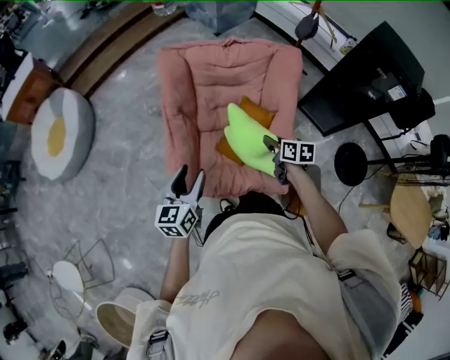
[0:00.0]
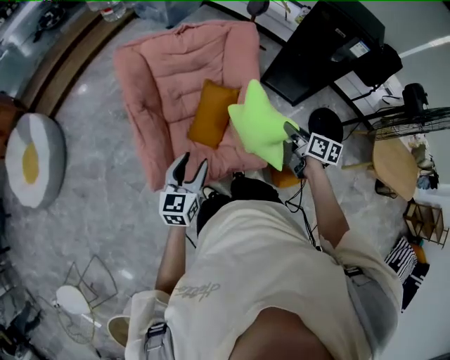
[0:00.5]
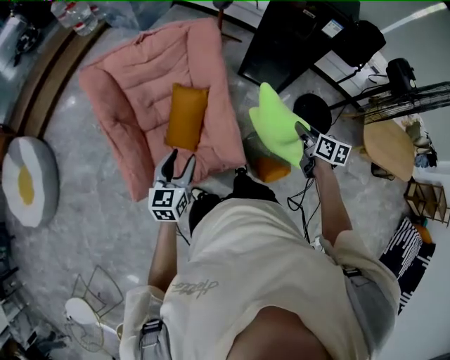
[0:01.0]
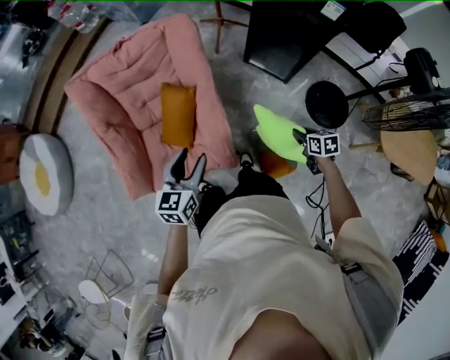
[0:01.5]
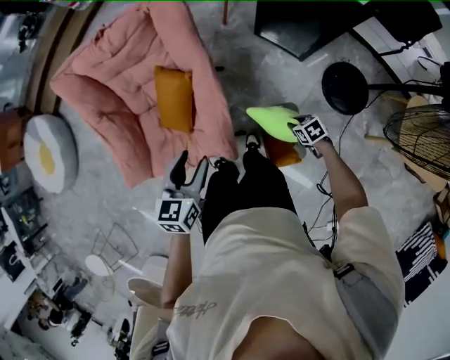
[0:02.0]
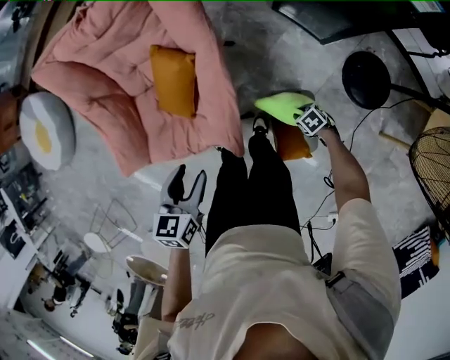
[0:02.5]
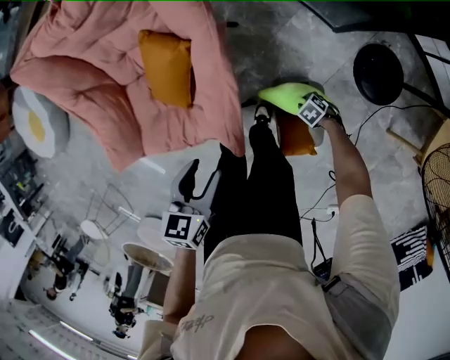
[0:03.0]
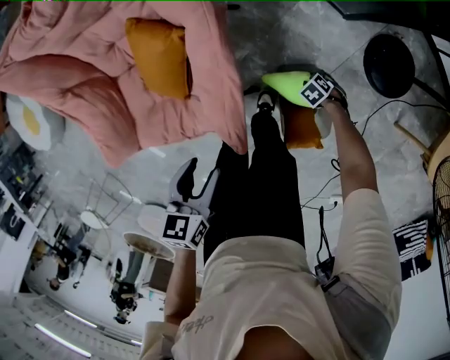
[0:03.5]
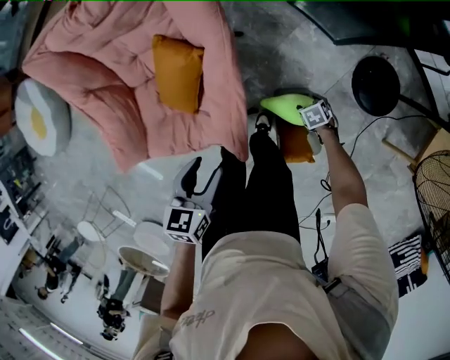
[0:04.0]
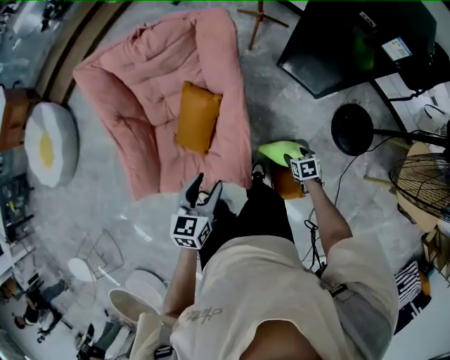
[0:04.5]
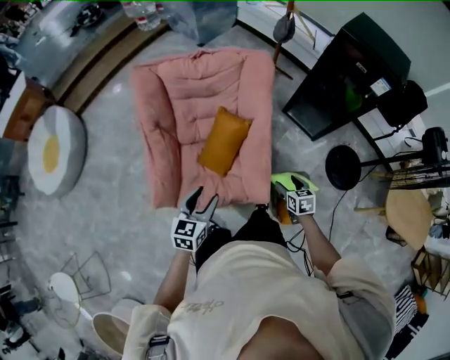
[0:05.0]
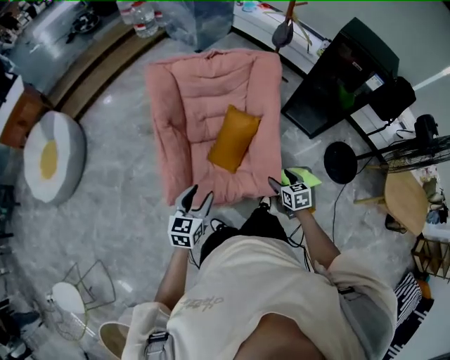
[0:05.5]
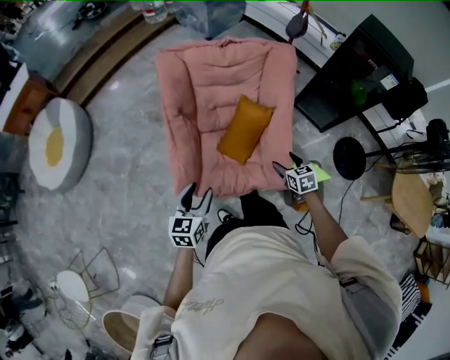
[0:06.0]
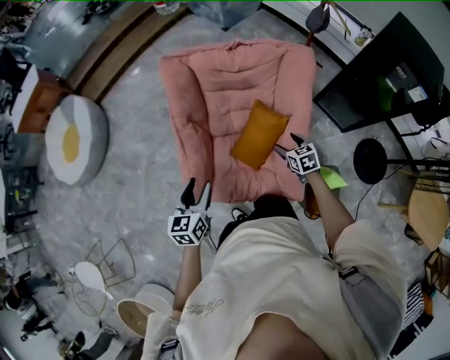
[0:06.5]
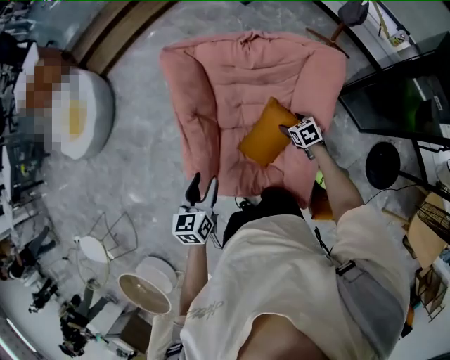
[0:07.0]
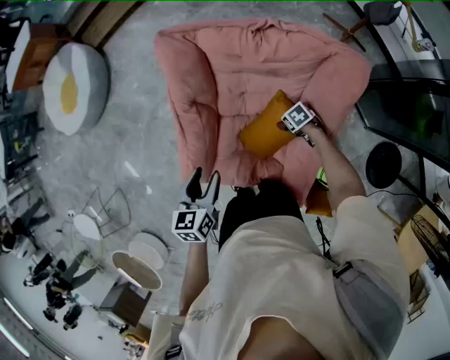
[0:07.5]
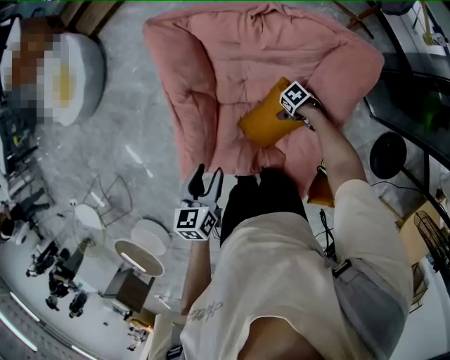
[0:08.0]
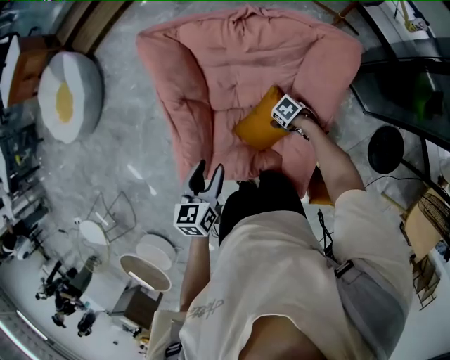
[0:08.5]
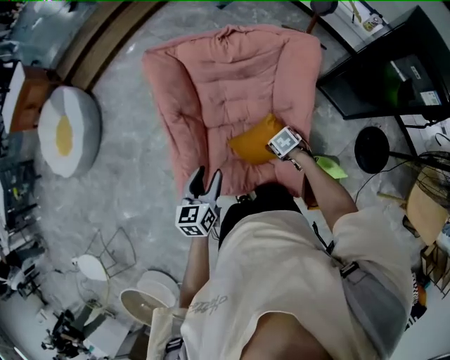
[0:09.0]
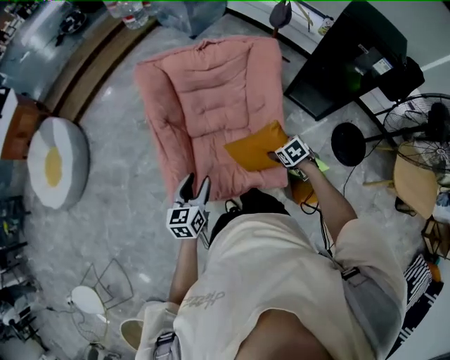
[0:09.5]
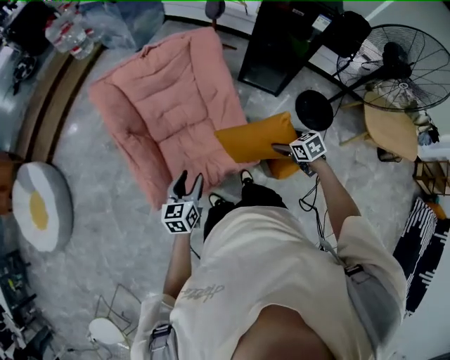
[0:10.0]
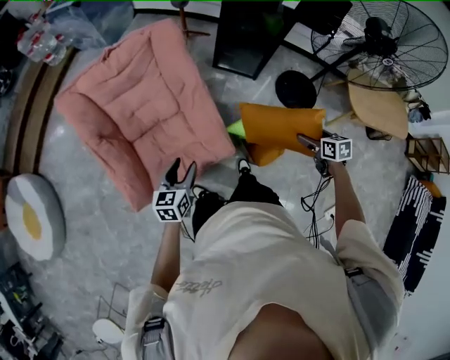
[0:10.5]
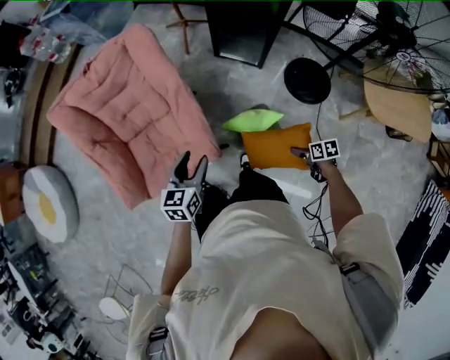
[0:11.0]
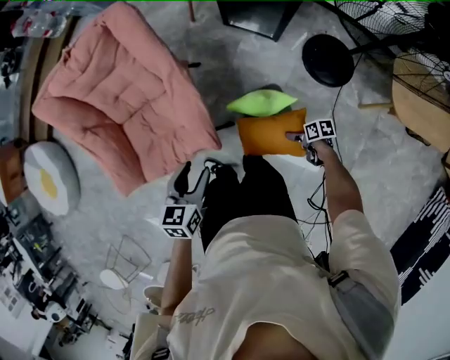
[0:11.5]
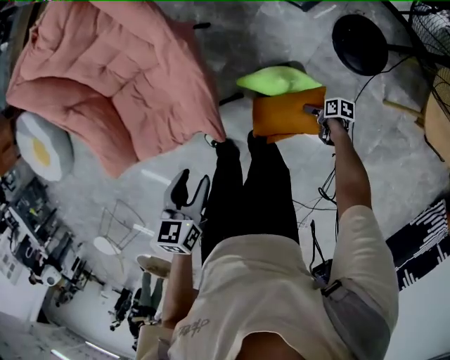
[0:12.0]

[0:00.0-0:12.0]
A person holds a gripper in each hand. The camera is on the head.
0:00.0 to 0:02.0: The right gripper changes place by about 50 cm, and changes its angle by some 30 degrees, while the left gripper ends up some 35 cm from where it was, and swivels about 20 degrees.
0:02.0 to 0:04.0: The left gripper travels downward by roughly 10 cm, while the right gripper is displaced downward by some 15 cm, and opens.
0:04.0 to 0:06.0: The right gripper heads upward, covering roughly 35 cm, and tilts its fingers some 30 degrees upward, while the left gripper shifts by some 35 cm, and changes its angle by some 20 degrees.
0:06.0 to 0:08.0: The left gripper ends up roughly 15 cm from where it was, and changes its angle by roughly 30 degrees; the right gripper changes place by approximately 35 cm, and turns by about 60 degrees.
0:08.0 to 0:10.0: The left gripper shifts by roughly 15 cm, and changes its angle by approximately 40 degrees. Meanwhile the right gripper ends up about 50 cm from where it was, and swivels about 60 degrees.
0:10.0 to 0:12.0: The right gripper travels downward by approximately 40 cm, and rolls clockwise, seen from behind, by some 50 degrees. The left gripper changes place by some 25 cm, and swivels about 30 degrees.

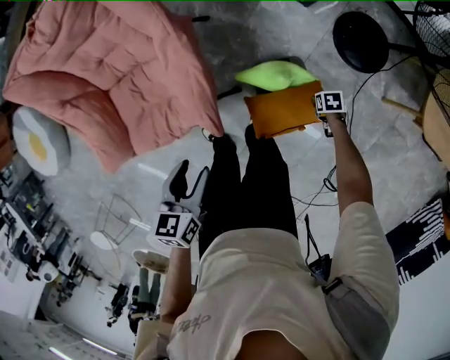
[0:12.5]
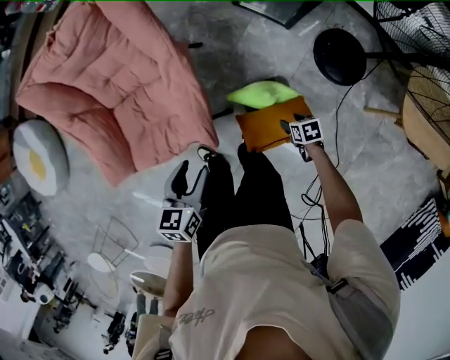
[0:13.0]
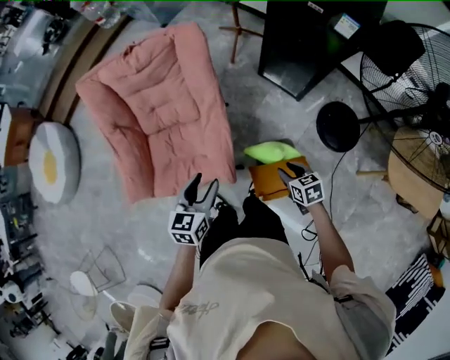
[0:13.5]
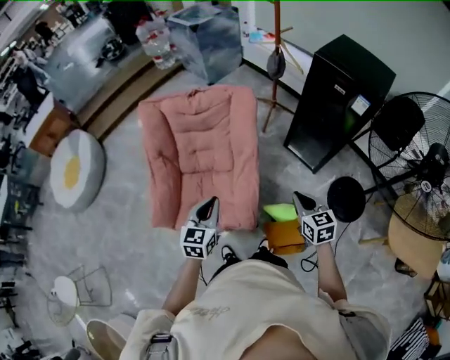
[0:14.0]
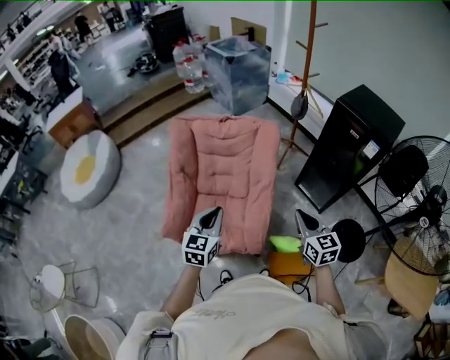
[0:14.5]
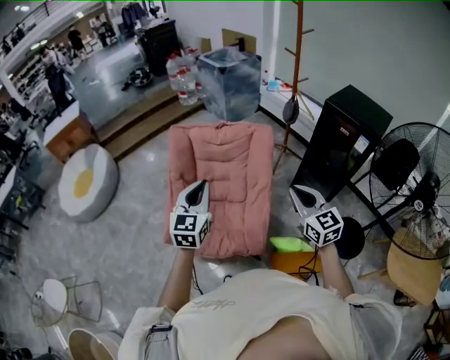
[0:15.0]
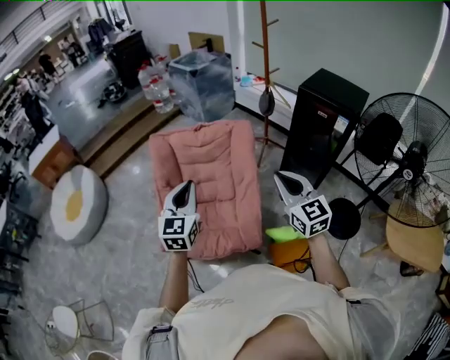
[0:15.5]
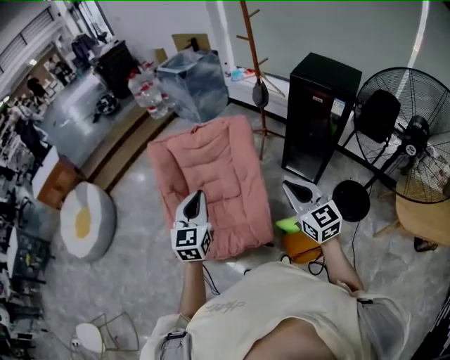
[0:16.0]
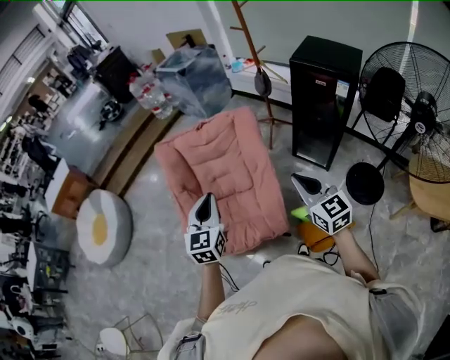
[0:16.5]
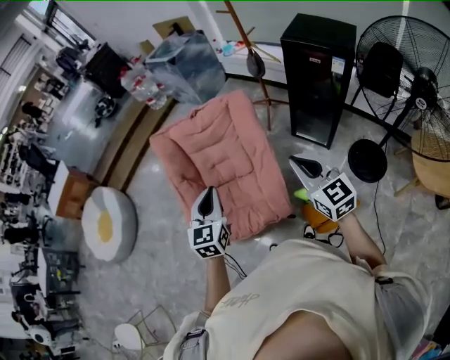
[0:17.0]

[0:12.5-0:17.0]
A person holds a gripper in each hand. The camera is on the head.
0:12.5 to 0:14.5: The left gripper moves upward, some 20 cm, angles its fingers upward, by roughly 30 degrees, and closes. The right gripper travels upward by some 60 cm, tilts its fingers approximately 70 degrees upward, and closes up.
0:14.5 to 0:17.0: The right gripper is displaced upward and to the left by roughly 10 cm; the left gripper goes some 5 cm upward.

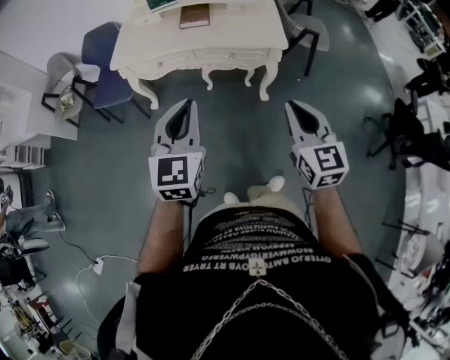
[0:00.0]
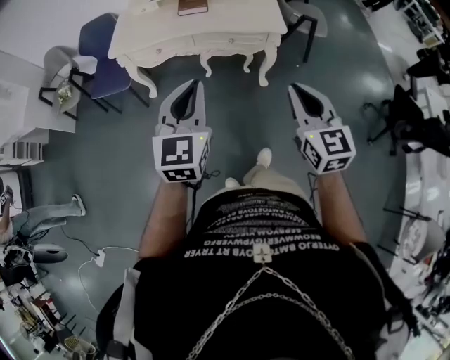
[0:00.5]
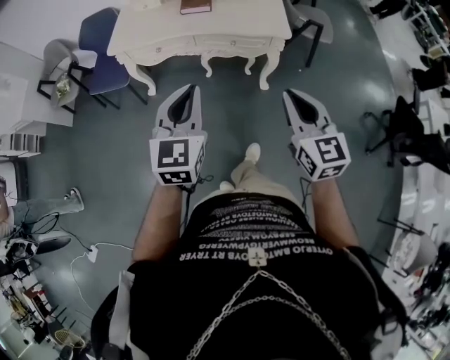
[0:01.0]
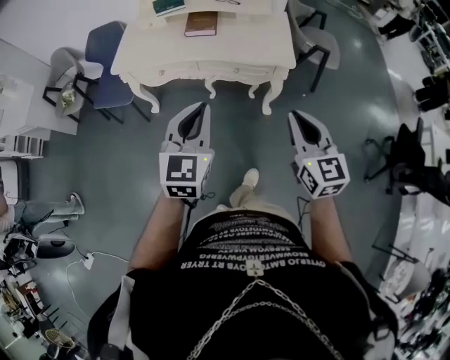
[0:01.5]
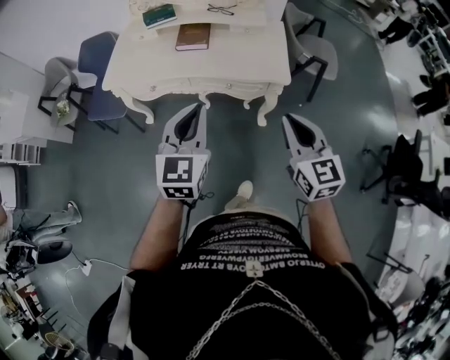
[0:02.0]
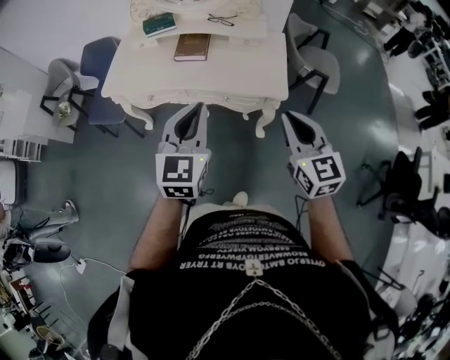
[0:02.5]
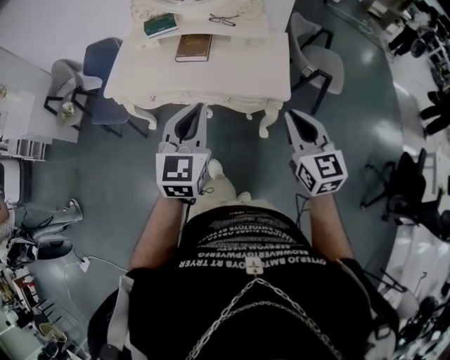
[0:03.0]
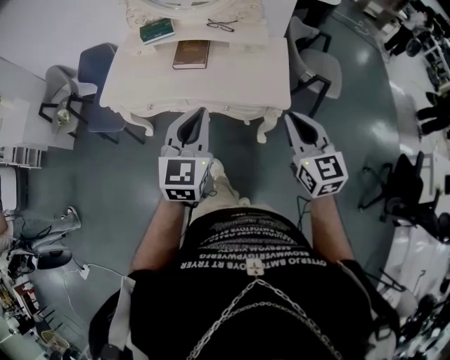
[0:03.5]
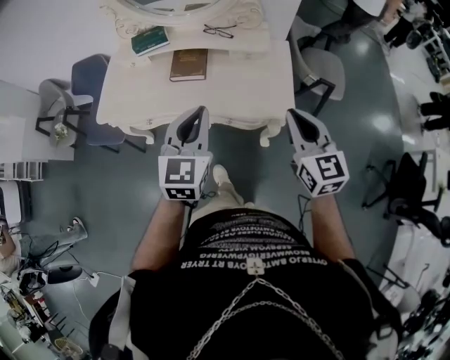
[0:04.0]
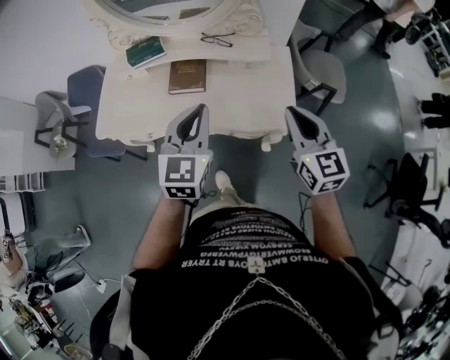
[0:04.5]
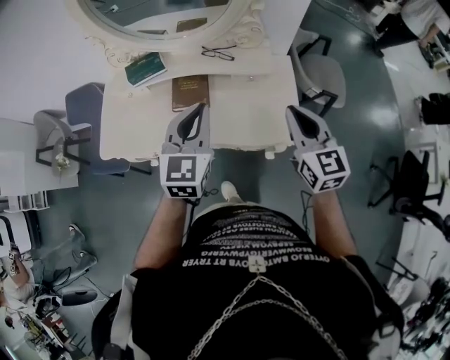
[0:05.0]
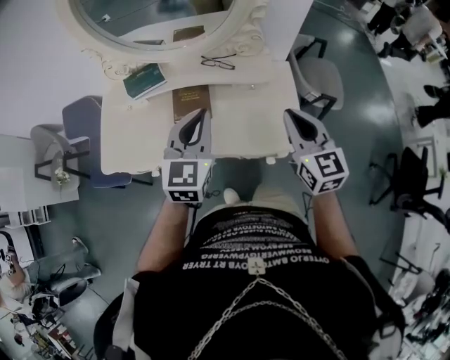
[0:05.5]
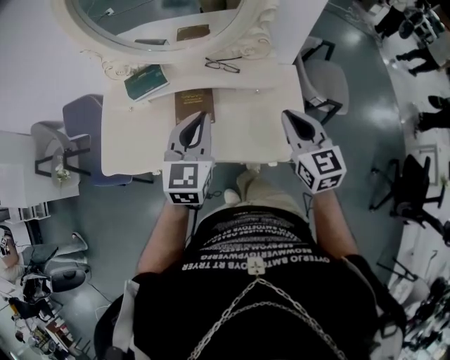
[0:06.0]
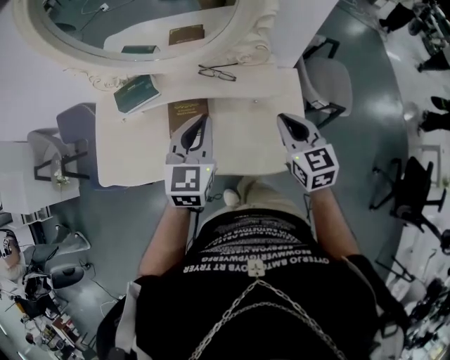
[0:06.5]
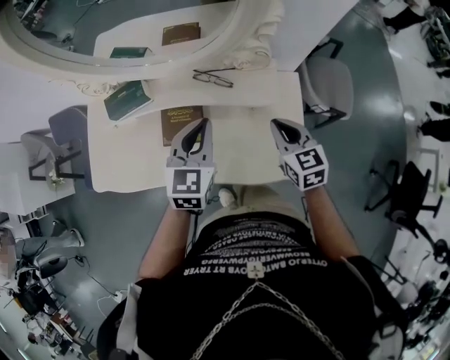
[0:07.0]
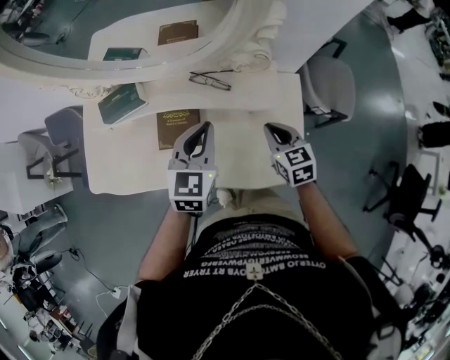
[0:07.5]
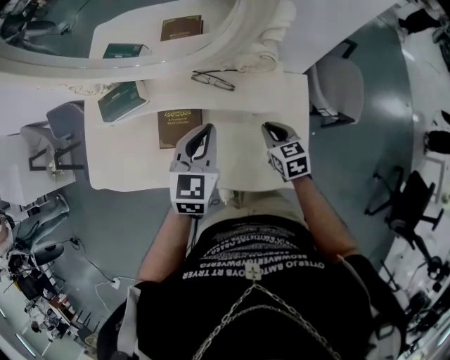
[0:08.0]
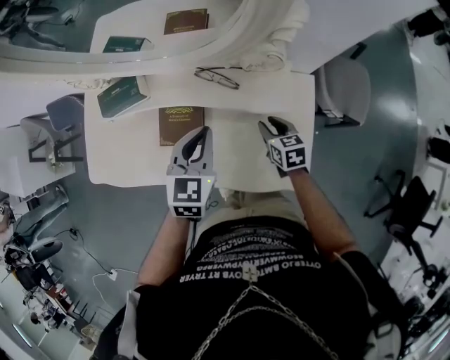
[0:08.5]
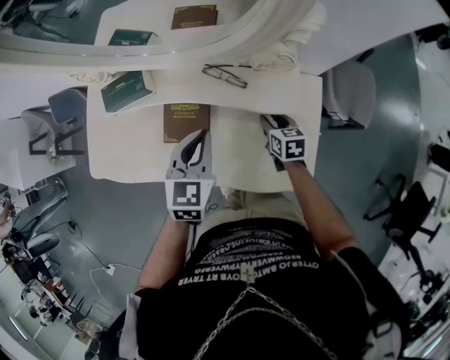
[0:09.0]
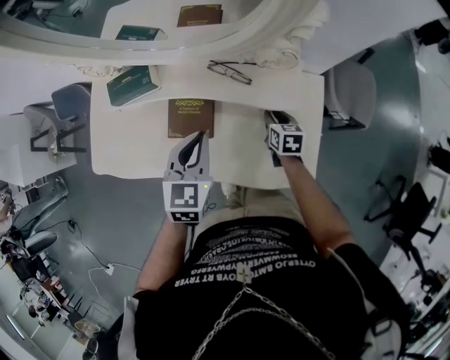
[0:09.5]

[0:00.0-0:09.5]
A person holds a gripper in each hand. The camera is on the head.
0:00.0 to 0:02.0: The right gripper travels forward by about 20 cm; the left gripper is displaced forward and to the right by about 20 cm.
0:02.0 to 0:04.0: The two grippers go some 20 cm forward.
0:04.0 to 0:05.5: The grippers both shift forward by roughly 15 cm.
0:05.5 to 0:07.5: The left gripper heads forward and downward, covering approximately 20 cm, while the right gripper is displaced downward and forward by approximately 25 cm, and swivels some 30 degrees.
0:07.5 to 0:09.5: The left gripper heads to the left, covering approximately 5 cm. Meanwhile the right gripper goes some 15 cm downward and forward, and turns by about 20 degrees.
